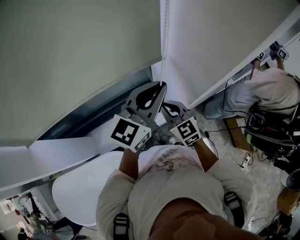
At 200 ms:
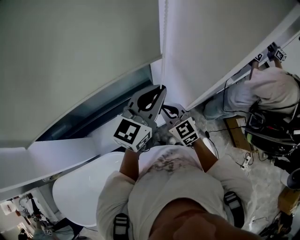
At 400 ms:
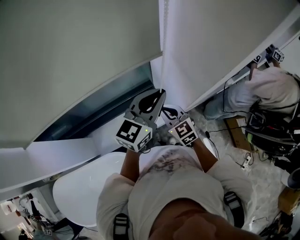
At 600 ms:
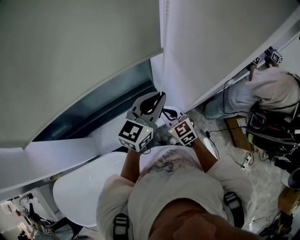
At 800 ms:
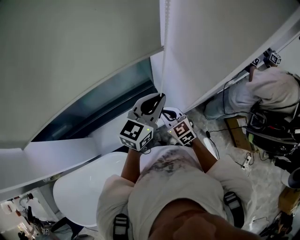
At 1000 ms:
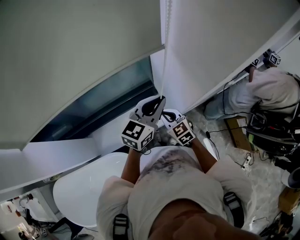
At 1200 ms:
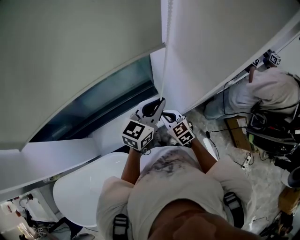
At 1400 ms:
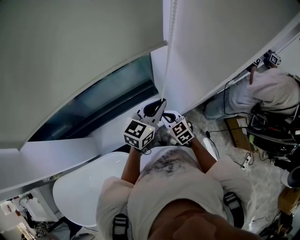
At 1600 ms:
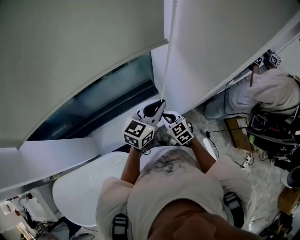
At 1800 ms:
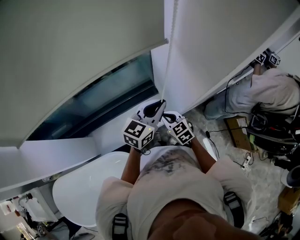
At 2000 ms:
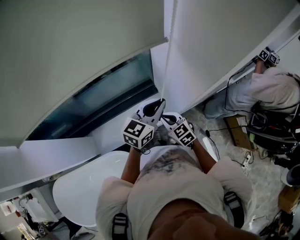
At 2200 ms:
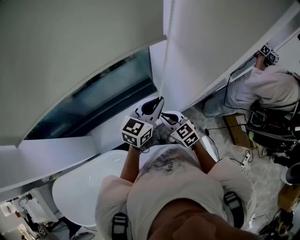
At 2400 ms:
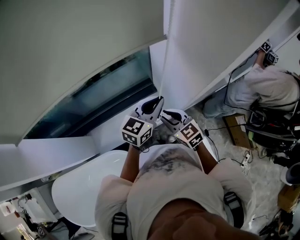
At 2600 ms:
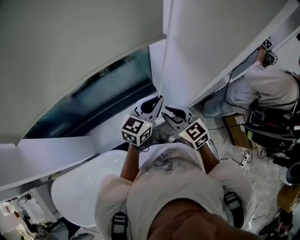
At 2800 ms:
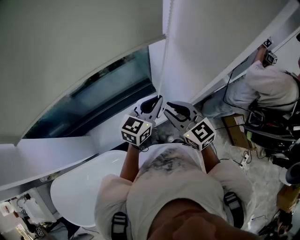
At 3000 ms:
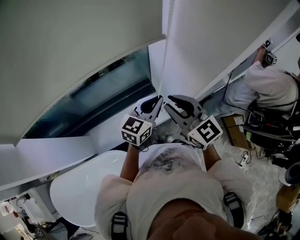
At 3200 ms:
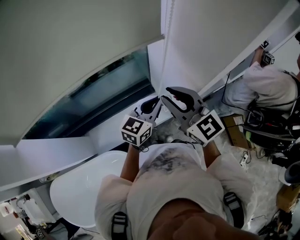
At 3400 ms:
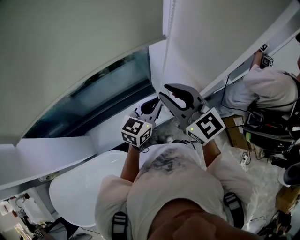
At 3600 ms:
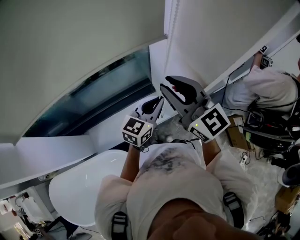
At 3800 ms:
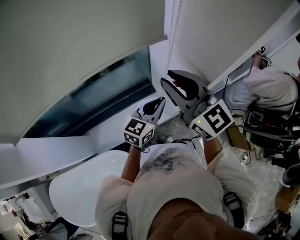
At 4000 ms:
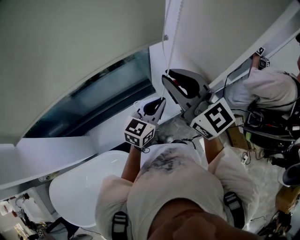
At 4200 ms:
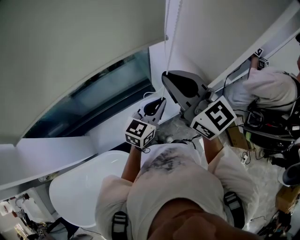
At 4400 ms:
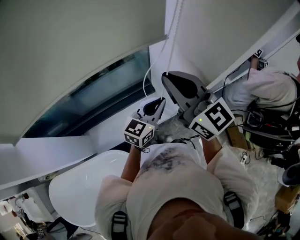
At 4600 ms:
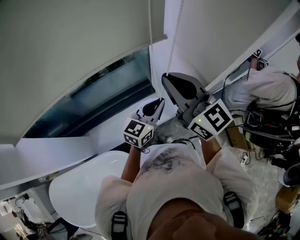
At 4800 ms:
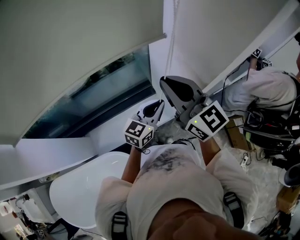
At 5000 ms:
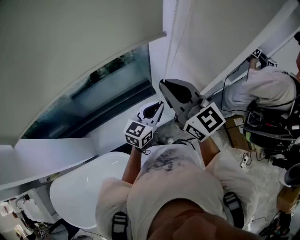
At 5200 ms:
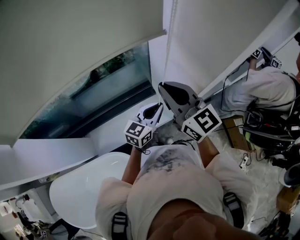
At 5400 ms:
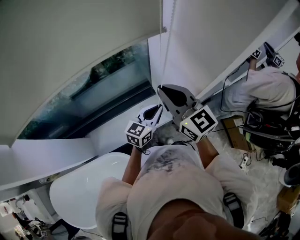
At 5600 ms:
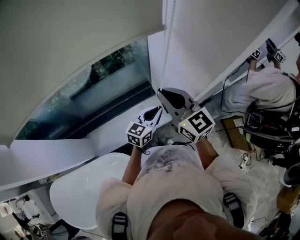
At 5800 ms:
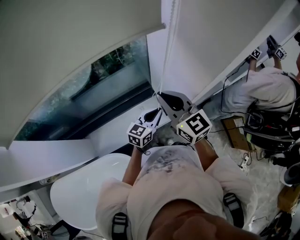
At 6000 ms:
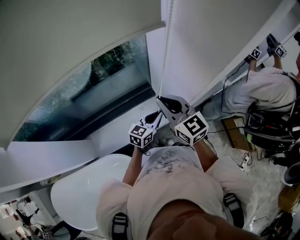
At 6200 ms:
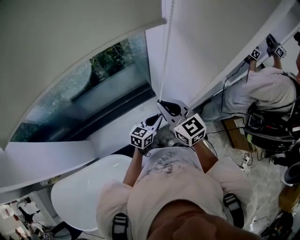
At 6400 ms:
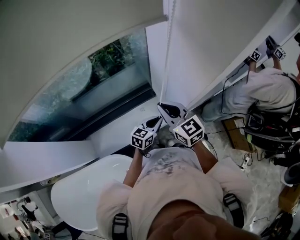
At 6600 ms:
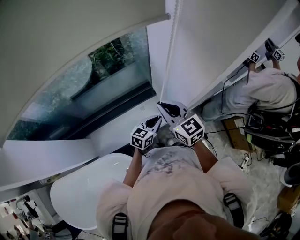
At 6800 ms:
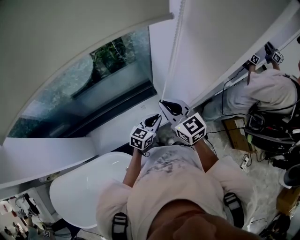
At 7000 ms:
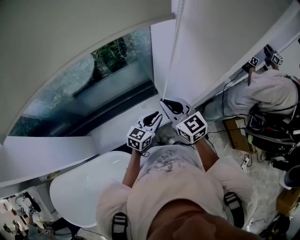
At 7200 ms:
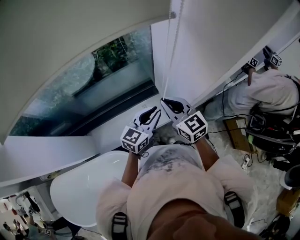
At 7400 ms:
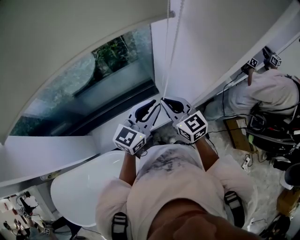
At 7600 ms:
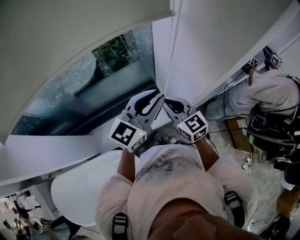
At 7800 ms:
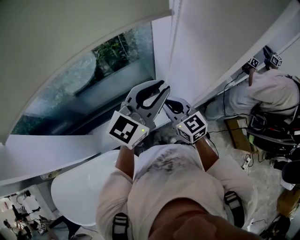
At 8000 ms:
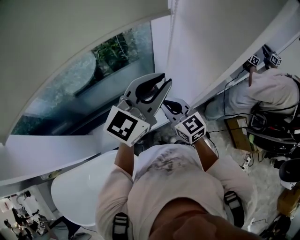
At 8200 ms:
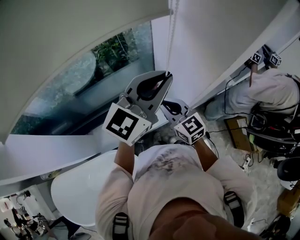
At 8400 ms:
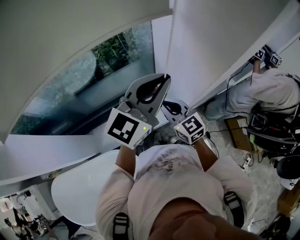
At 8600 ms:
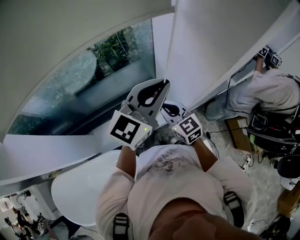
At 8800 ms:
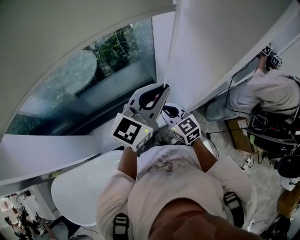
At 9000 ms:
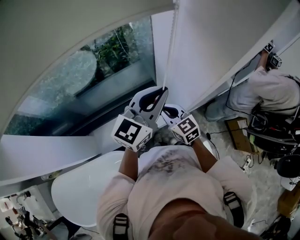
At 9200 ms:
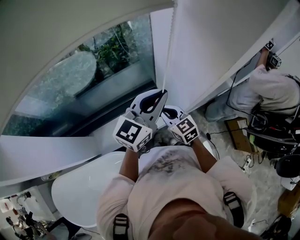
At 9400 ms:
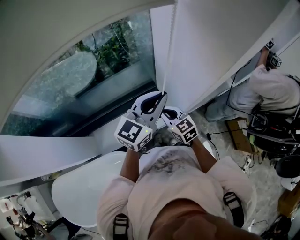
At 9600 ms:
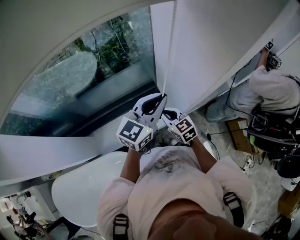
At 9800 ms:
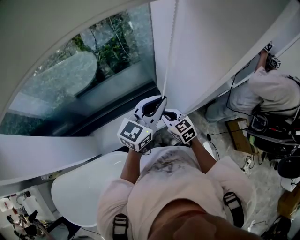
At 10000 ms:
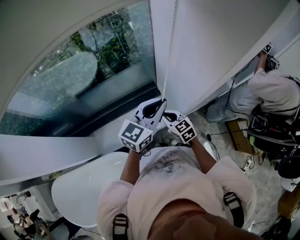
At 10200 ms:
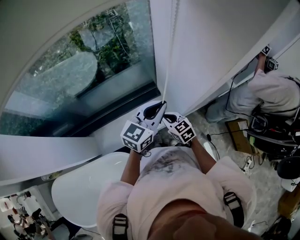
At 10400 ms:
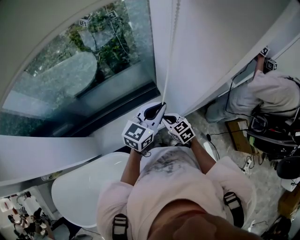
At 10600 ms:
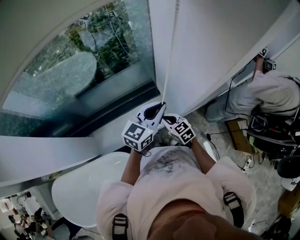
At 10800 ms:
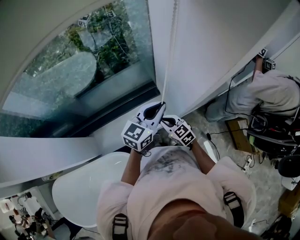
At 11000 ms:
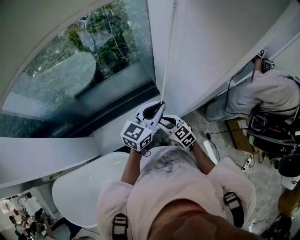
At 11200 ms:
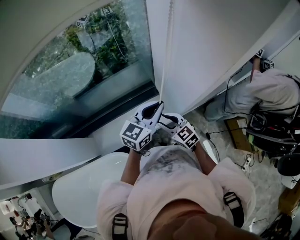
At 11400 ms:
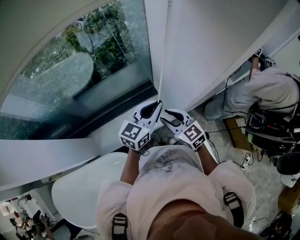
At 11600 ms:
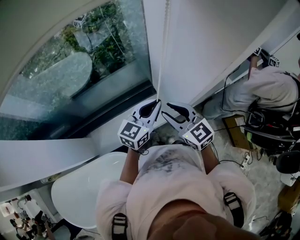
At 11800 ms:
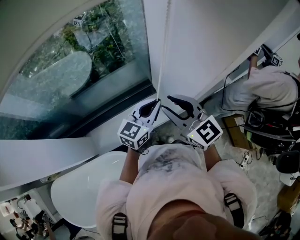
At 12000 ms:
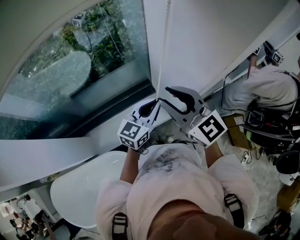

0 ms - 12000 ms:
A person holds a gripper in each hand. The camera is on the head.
0 ms - 1600 ms: Both grippers move downward, some 15 cm.
1600 ms - 3000 ms: The right gripper is displaced upward by some 25 cm, and swivels roughly 30 degrees.
3000 ms - 4400 ms: The right gripper heads upward, covering some 10 cm.
4400 ms - 6000 ms: Both grippers travel together downward, roughly 15 cm.
6000 ms - 7600 ms: The left gripper is displaced upward by roughly 25 cm, and turns by some 30 degrees.
7600 ms - 9000 ms: The left gripper goes upward and returns, some 10 cm each way; the right gripper travels downward by about 5 cm.
9000 ms - 10400 ms: The two grippers go roughly 10 cm downward.
10400 ms - 12000 ms: The right gripper goes some 30 cm upward, points its fingers roughly 30 degrees further upward, and opens its fingers.

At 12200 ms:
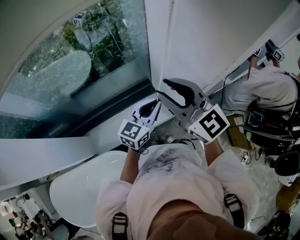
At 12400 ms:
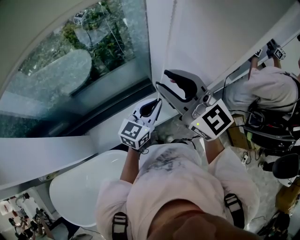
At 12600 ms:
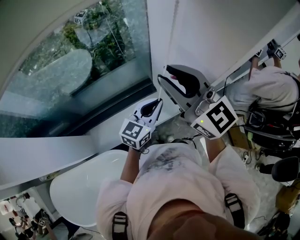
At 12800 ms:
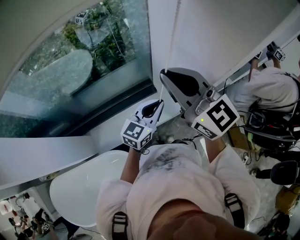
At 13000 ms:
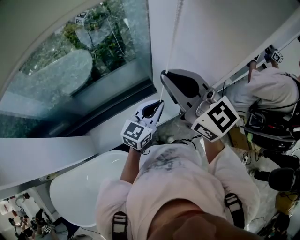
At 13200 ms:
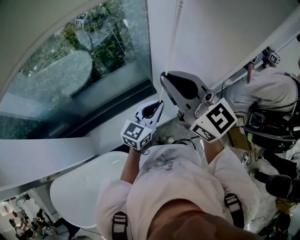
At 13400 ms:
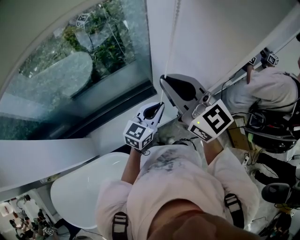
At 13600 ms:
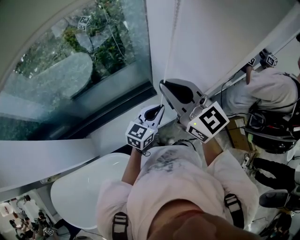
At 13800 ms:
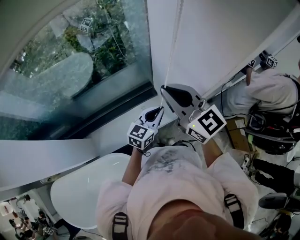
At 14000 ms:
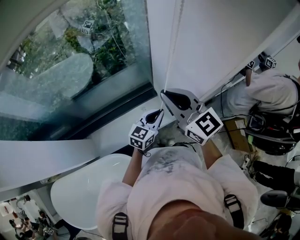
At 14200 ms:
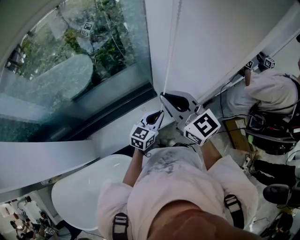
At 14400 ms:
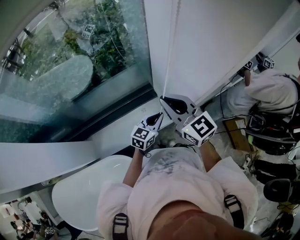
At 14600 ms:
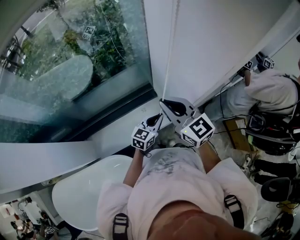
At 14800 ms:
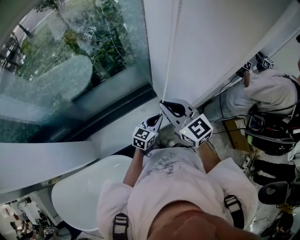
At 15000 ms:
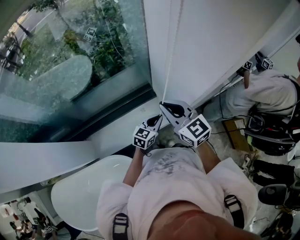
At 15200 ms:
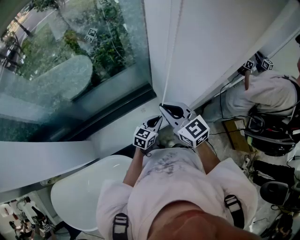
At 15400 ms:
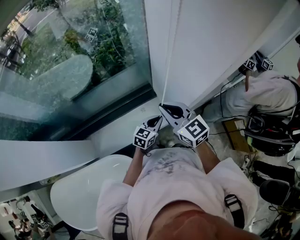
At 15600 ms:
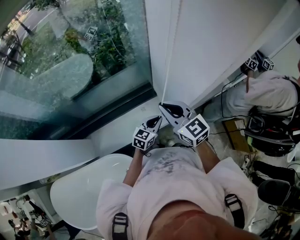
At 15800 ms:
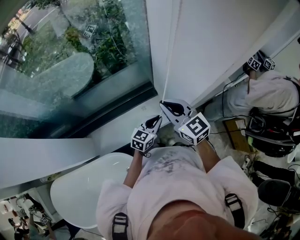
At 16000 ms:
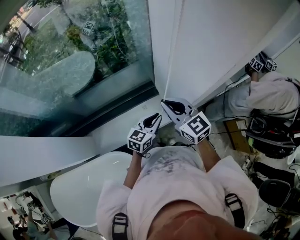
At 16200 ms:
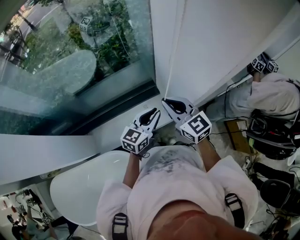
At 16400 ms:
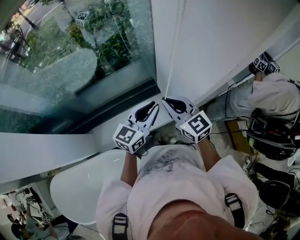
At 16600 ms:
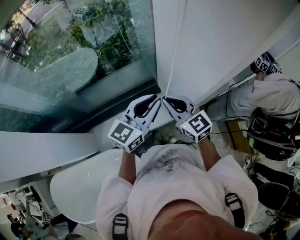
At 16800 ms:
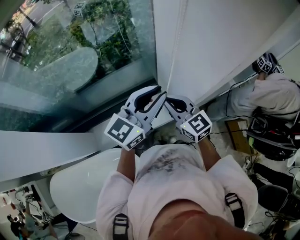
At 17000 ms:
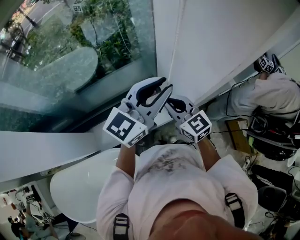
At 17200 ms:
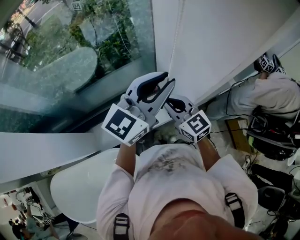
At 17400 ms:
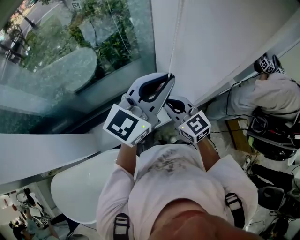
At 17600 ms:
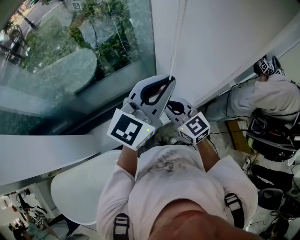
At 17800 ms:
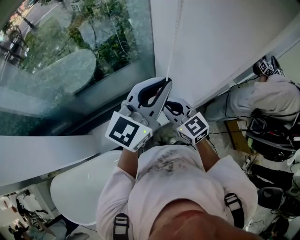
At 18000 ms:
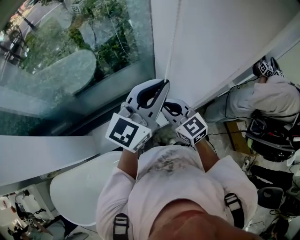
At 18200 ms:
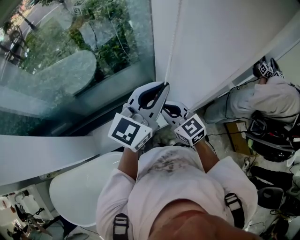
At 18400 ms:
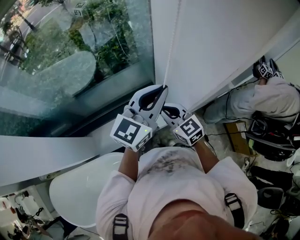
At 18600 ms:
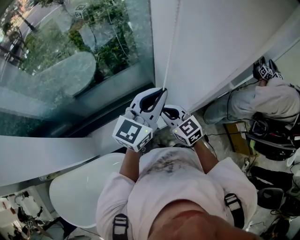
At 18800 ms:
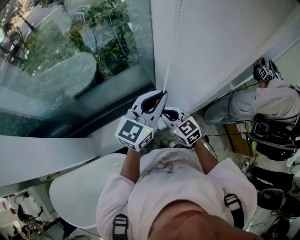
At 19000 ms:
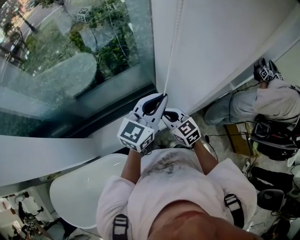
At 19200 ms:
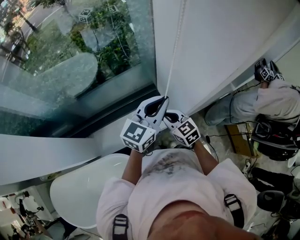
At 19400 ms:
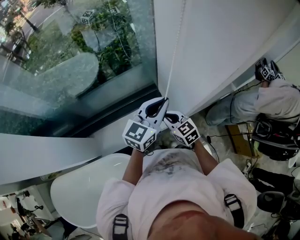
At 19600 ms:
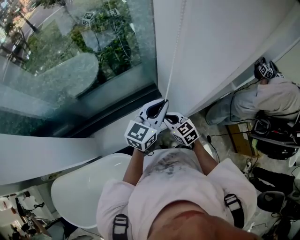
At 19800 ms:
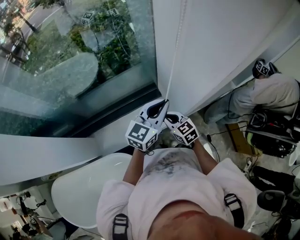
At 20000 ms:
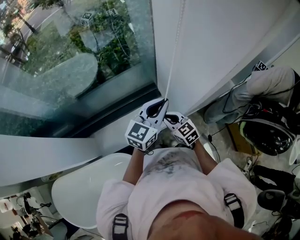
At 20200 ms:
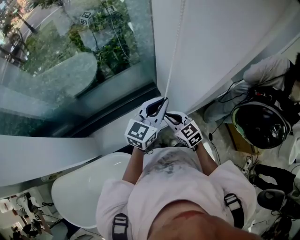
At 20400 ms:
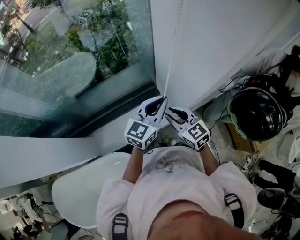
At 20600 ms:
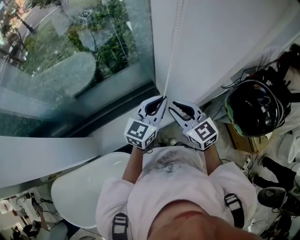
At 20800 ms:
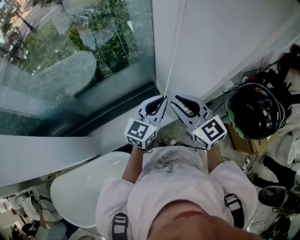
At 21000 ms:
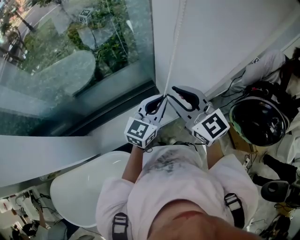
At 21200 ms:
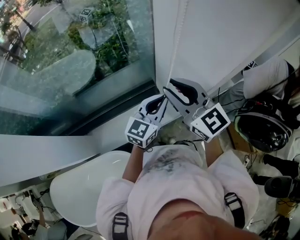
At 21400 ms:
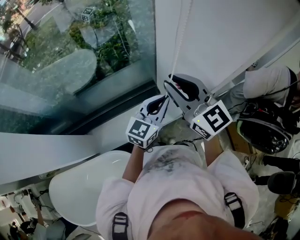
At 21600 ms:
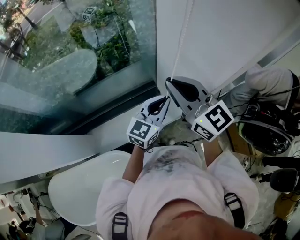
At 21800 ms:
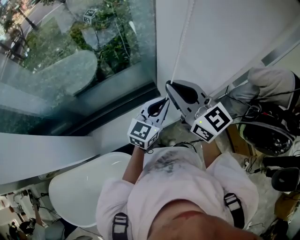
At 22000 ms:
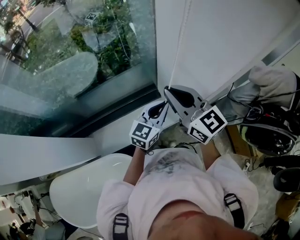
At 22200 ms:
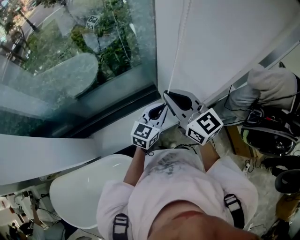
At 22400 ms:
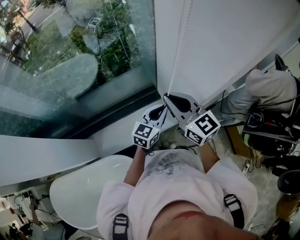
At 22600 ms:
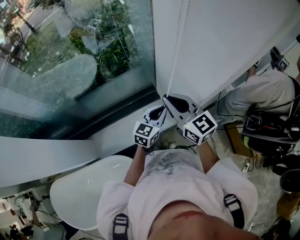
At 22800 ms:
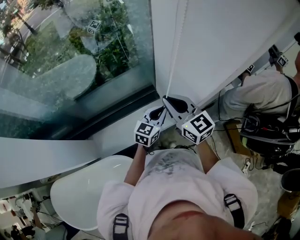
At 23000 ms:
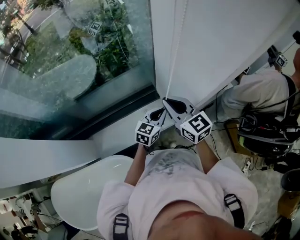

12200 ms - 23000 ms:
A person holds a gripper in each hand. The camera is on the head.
12200 ms - 13800 ms: The right gripper closes its fingers, while the left gripper goes approximately 5 cm downward.
13800 ms - 15200 ms: The two grippers go about 10 cm downward.
15200 ms - 16800 ms: The left gripper moves upward, about 30 cm, and turns by roughly 30 degrees.
18400 ms - 20000 ms: Both grippers travel together downward, approximately 10 cm.
20000 ms - 21400 ms: The right gripper shifts roughly 30 cm upward, and turns by about 30 degrees.
21400 ms - 23000 ms: Both grippers travel together downward, roughly 15 cm.

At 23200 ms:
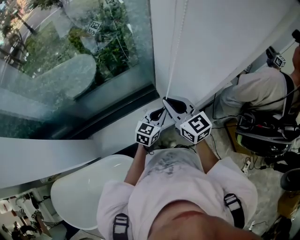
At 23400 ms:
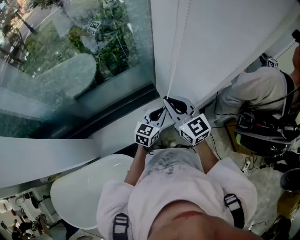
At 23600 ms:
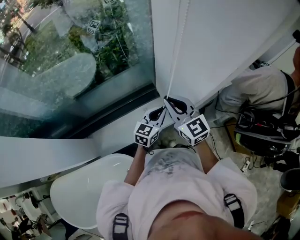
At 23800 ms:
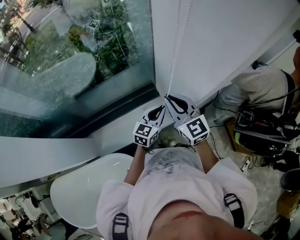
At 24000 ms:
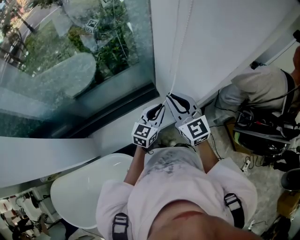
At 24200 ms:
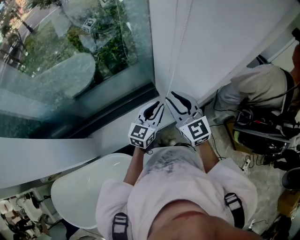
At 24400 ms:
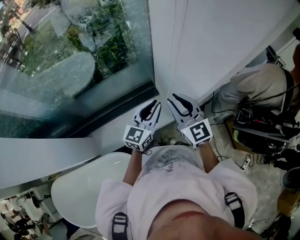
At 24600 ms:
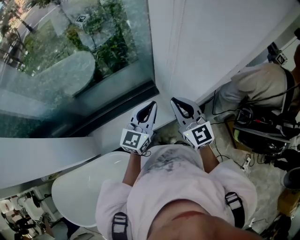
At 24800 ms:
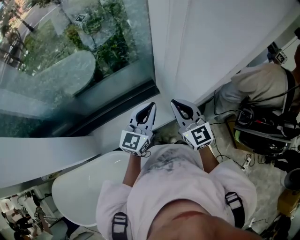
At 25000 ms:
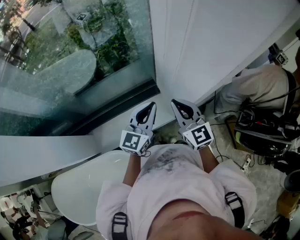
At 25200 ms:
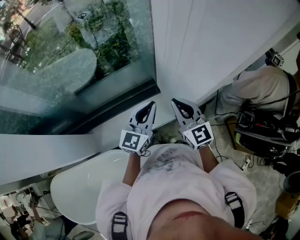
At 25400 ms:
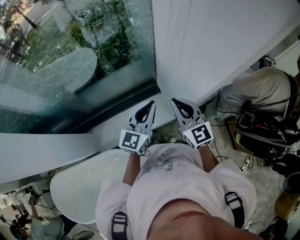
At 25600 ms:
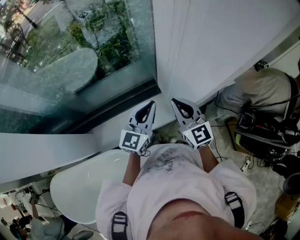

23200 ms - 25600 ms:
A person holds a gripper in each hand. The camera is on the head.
23200 ms - 24400 ms: The left gripper goes roughly 10 cm upward.
24400 ms - 25600 ms: The grippers move only a little.
